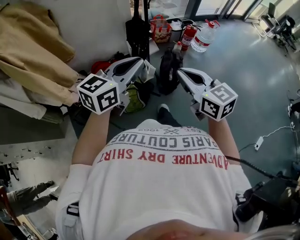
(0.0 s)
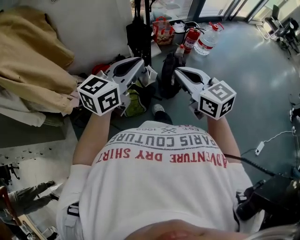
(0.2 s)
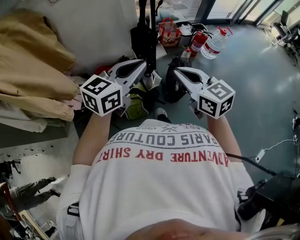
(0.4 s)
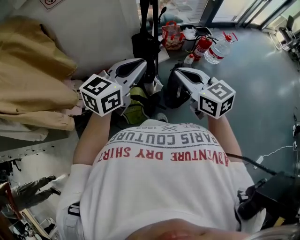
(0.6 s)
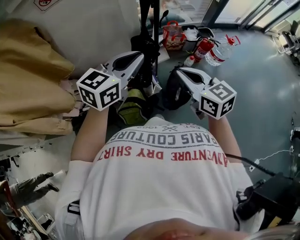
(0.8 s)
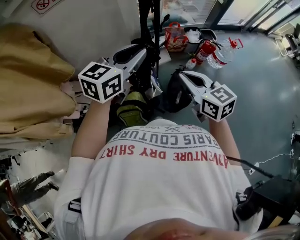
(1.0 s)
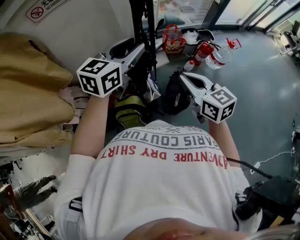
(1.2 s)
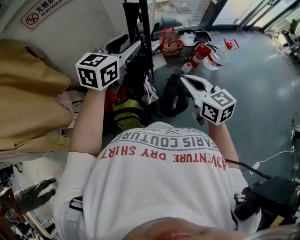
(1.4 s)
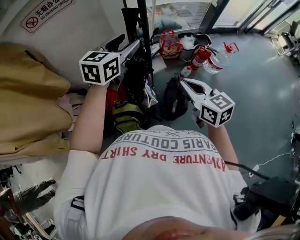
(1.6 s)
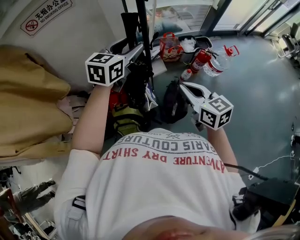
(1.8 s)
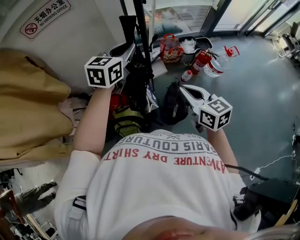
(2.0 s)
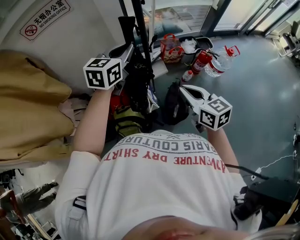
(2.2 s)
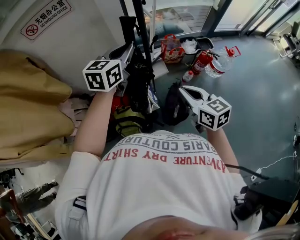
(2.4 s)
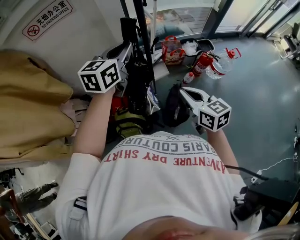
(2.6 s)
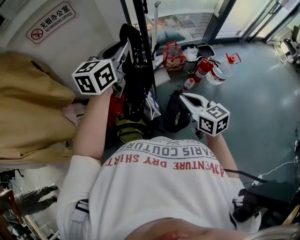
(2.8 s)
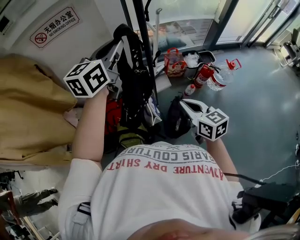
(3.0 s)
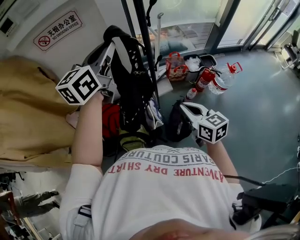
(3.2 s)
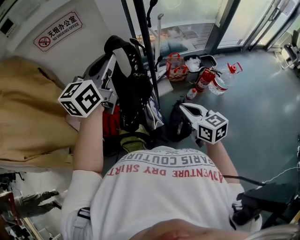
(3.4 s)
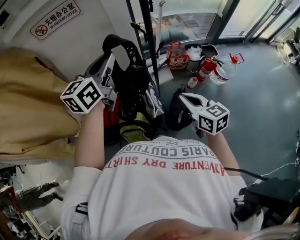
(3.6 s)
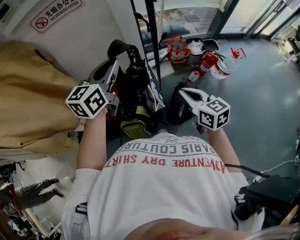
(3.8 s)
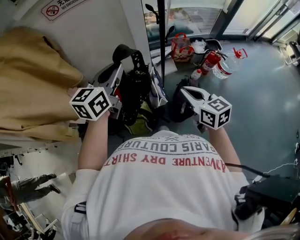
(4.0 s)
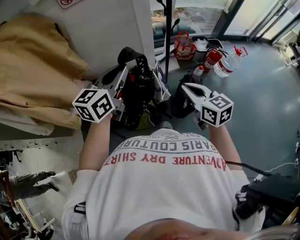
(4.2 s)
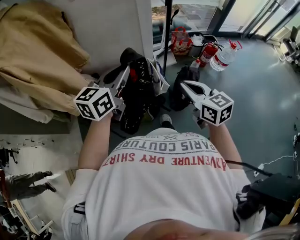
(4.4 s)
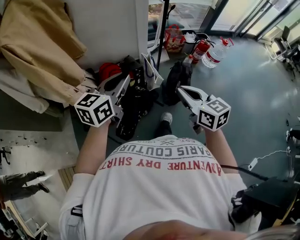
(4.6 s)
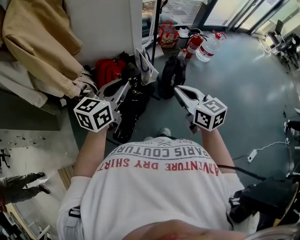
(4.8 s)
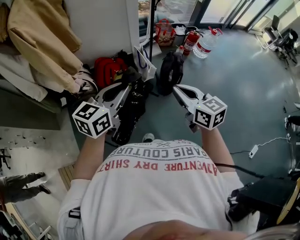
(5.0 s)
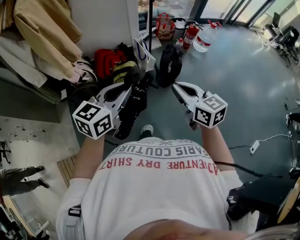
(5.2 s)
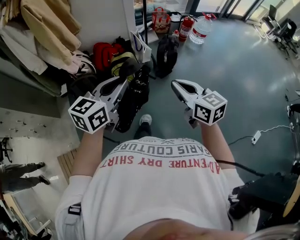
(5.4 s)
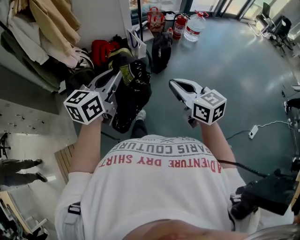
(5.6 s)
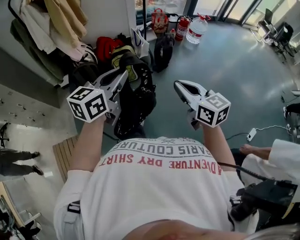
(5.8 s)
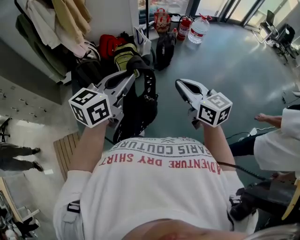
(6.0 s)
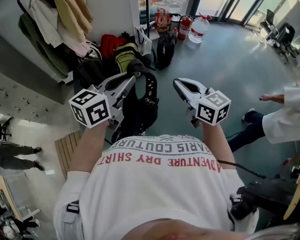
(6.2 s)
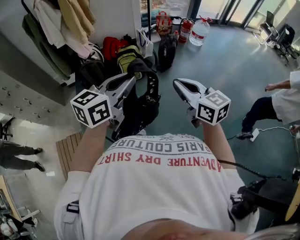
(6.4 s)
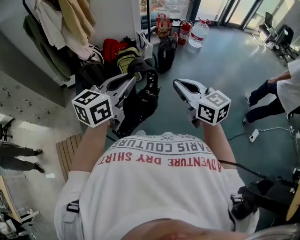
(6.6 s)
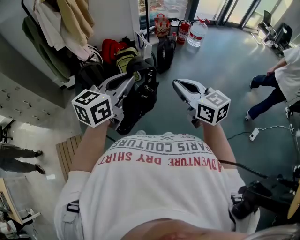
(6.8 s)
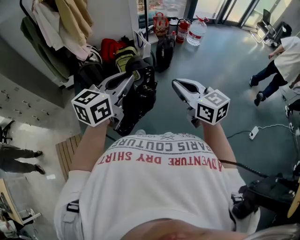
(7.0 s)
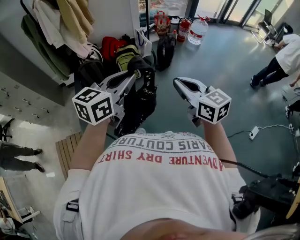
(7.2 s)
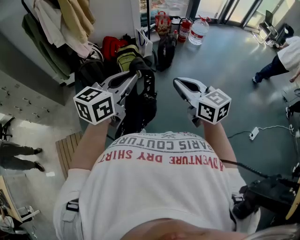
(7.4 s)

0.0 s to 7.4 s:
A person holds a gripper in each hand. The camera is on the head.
0.0 to 1.4 s: Both grippers move forward, some 40 cm. The left gripper opens.
1.4 to 3.0 s: The left gripper moves upward and forward, some 10 cm, and closes.
3.0 to 4.4 s: Both grippers move backward and to the left, about 30 cm.
4.4 to 6.0 s: The pair of grippers is taken backward, approximately 60 cm.
6.0 to 7.4 s: The two grippers go roughly 5 cm backward.

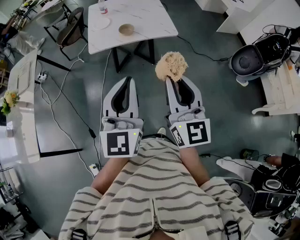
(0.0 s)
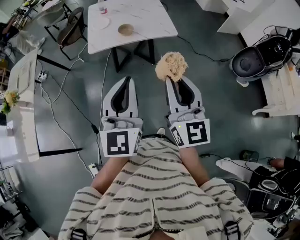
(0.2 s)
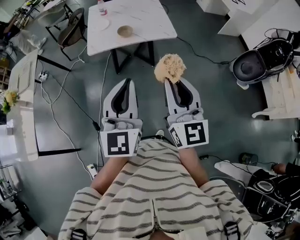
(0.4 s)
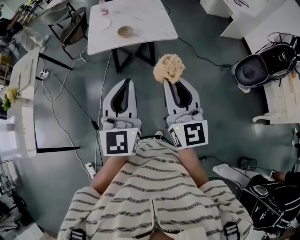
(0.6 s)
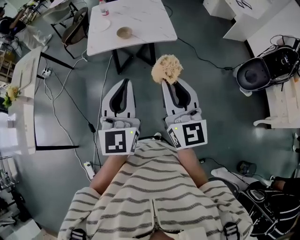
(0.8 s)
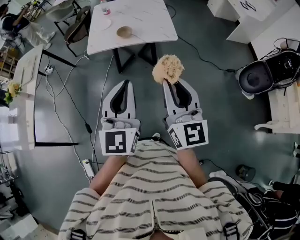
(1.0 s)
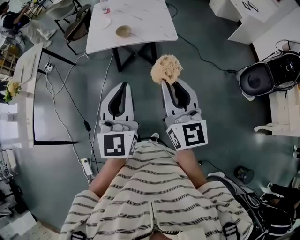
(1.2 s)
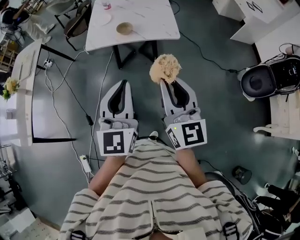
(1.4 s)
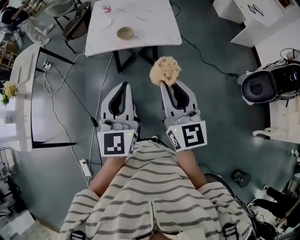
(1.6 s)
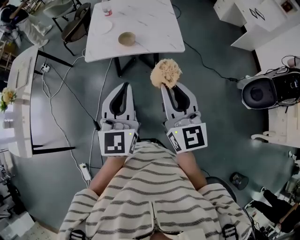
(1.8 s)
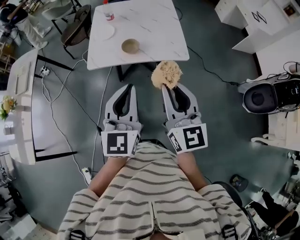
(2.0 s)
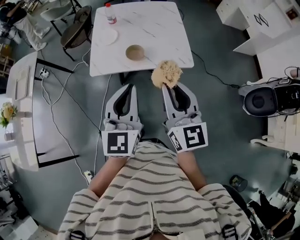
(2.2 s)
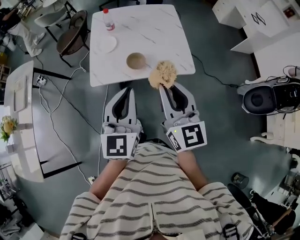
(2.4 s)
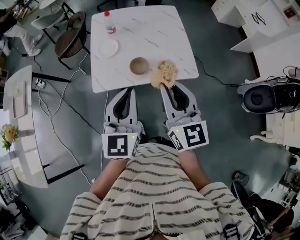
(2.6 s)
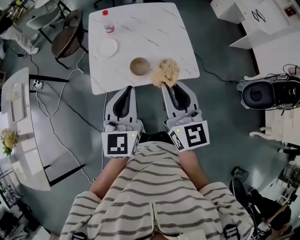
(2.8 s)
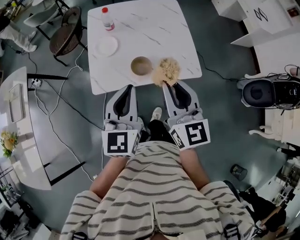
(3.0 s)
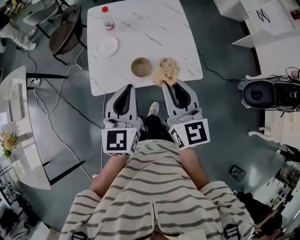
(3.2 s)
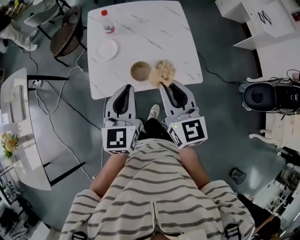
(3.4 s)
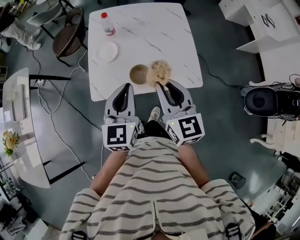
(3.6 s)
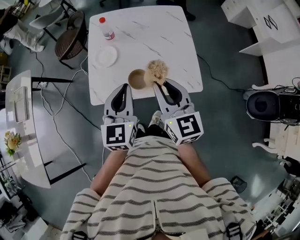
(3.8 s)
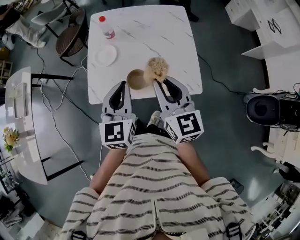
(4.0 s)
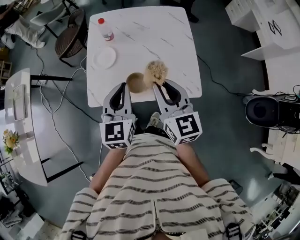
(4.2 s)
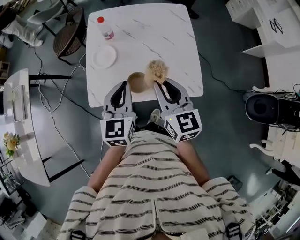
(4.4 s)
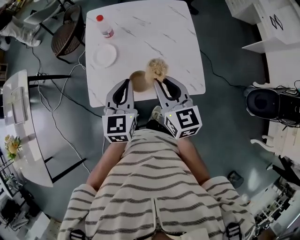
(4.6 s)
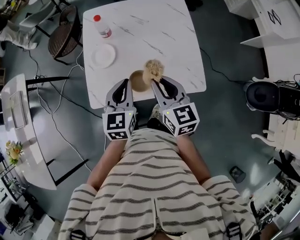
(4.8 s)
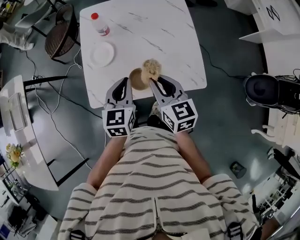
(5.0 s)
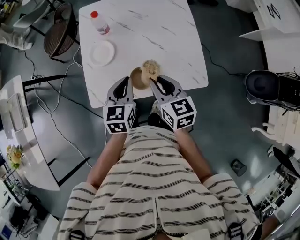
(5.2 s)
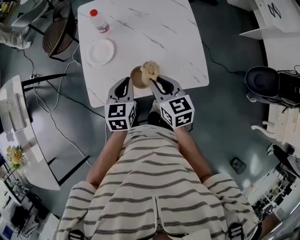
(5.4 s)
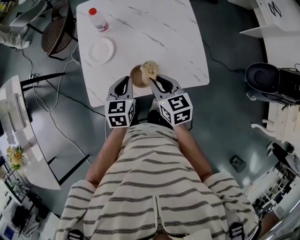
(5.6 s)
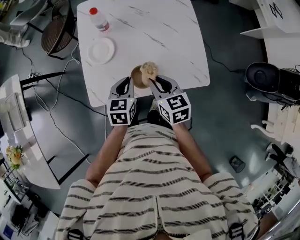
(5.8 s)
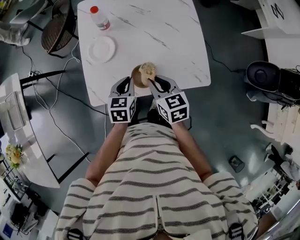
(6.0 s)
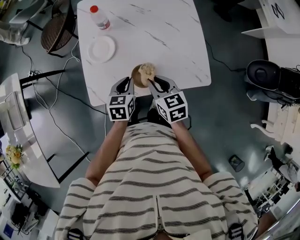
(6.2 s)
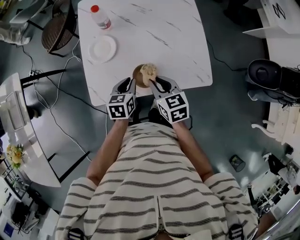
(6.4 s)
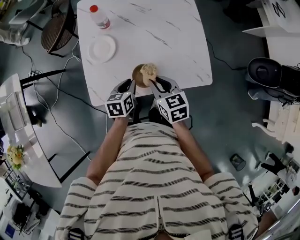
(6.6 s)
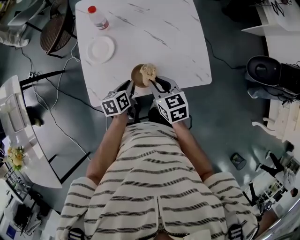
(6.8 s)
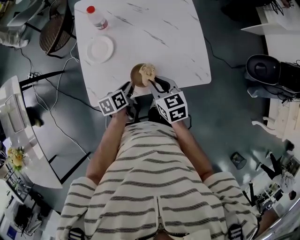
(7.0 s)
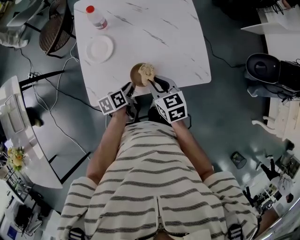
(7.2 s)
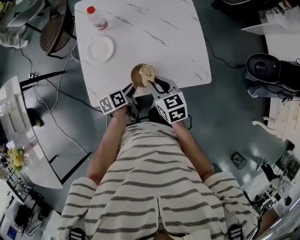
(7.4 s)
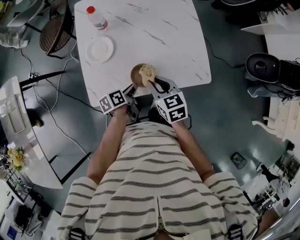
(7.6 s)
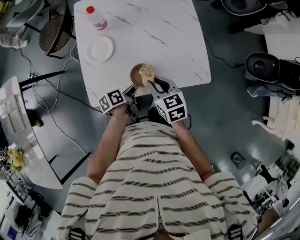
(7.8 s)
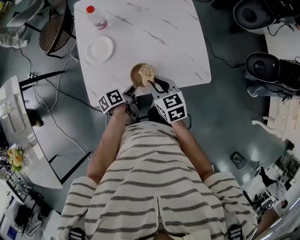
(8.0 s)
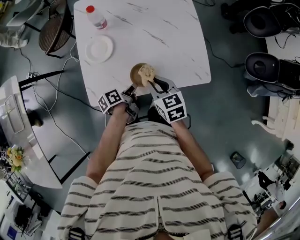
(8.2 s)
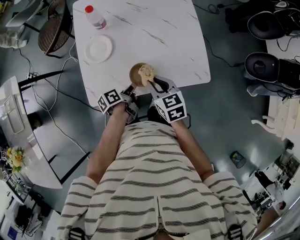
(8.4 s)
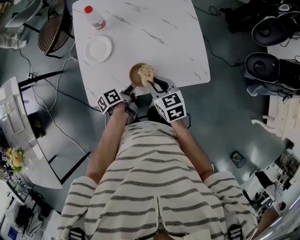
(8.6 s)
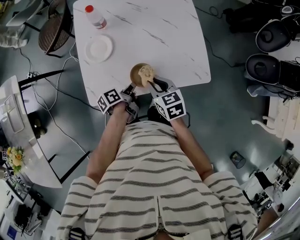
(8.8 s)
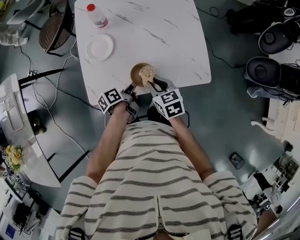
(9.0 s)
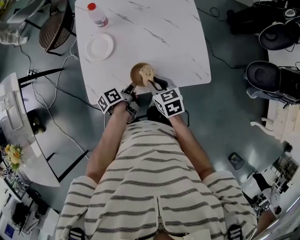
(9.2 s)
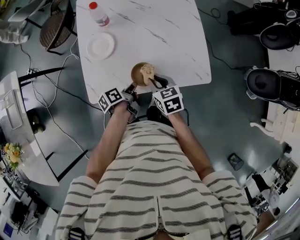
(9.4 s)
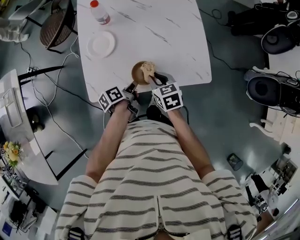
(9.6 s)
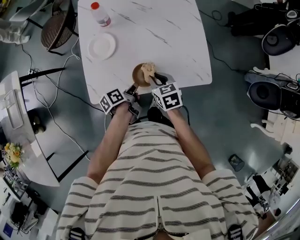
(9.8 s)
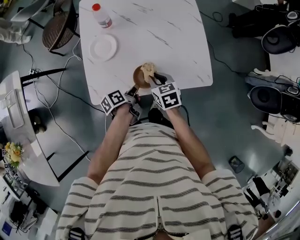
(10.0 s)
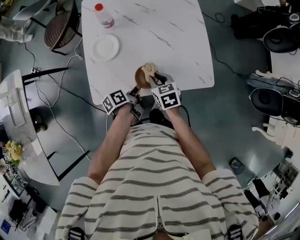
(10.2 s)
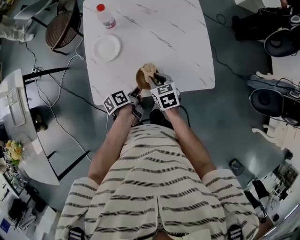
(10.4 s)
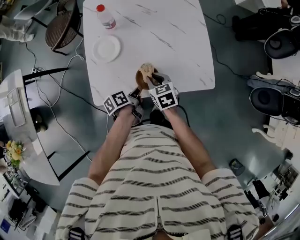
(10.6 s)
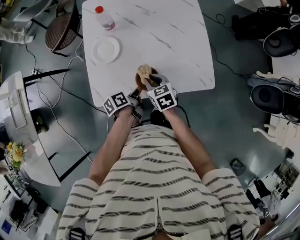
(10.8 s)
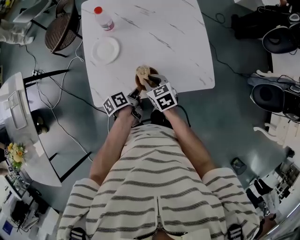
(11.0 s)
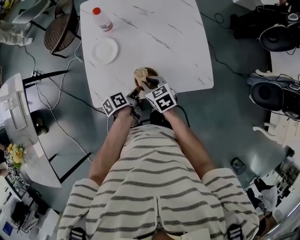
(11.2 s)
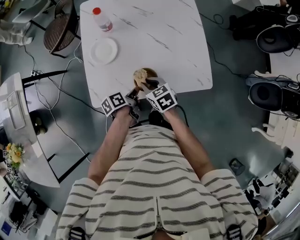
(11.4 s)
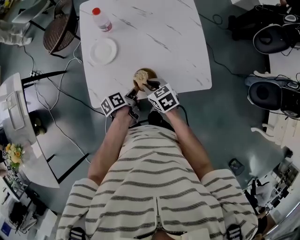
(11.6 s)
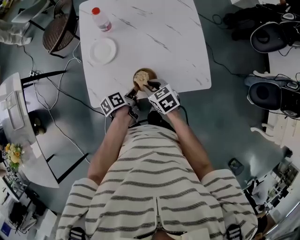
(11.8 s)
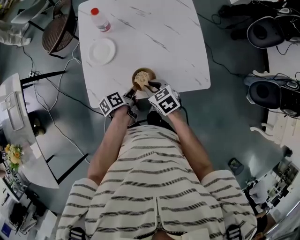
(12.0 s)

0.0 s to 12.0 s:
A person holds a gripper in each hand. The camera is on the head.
0.0 to 1.6 s: The left gripper shifts roughly 15 cm to the right, forward and downward. Meanwhile the right gripper moves forward and to the right, about 15 cm.
1.6 to 3.0 s: The two grippers go roughly 35 cm forward.
3.0 to 4.4 s: Both grippers move forward and downward, approximately 15 cm.
4.4 to 6.0 s: Both grippers move downward, approximately 15 cm. The left gripper swivels approximately 30 degrees. The right gripper swivels roughly 20 degrees.
6.0 to 7.6 s: The left gripper moves downward, roughly 10 cm, and rolls counterclockwise, seen from behind, by some 50 degrees.
7.6 to 9.0 s: The grippers make only small movements.
9.0 to 10.4 s: The right gripper moves about 5 cm.
10.4 to 12.0 s: There are only small adjustments of the grippers.

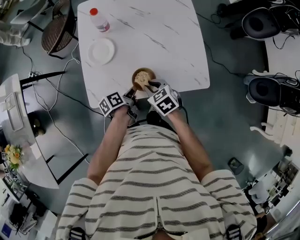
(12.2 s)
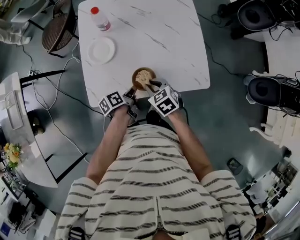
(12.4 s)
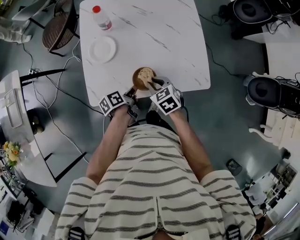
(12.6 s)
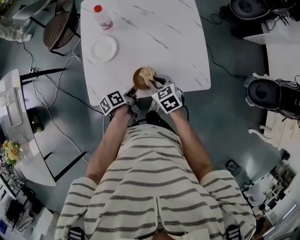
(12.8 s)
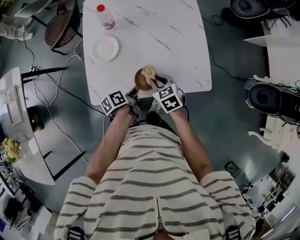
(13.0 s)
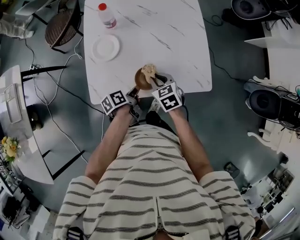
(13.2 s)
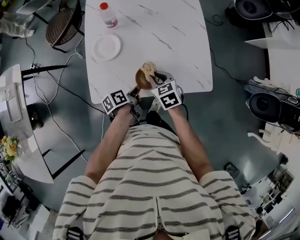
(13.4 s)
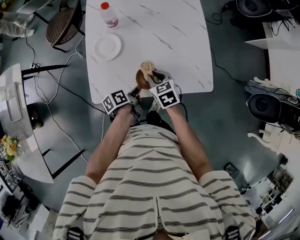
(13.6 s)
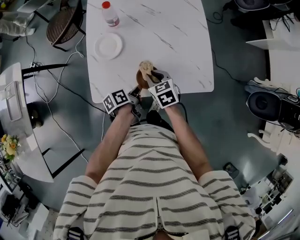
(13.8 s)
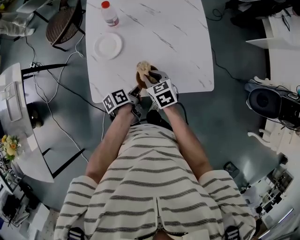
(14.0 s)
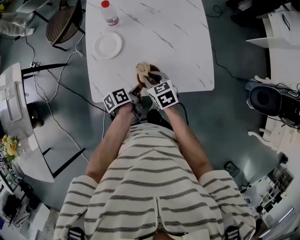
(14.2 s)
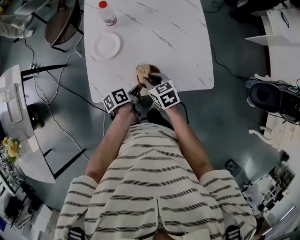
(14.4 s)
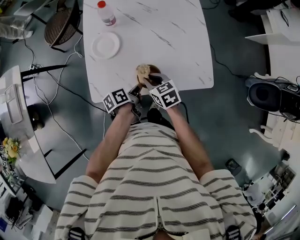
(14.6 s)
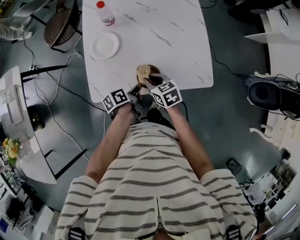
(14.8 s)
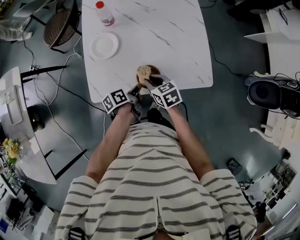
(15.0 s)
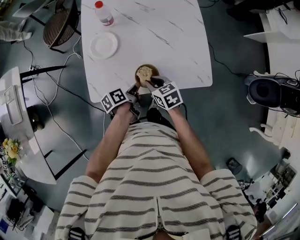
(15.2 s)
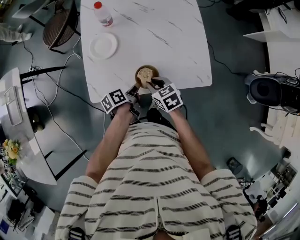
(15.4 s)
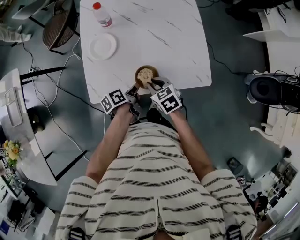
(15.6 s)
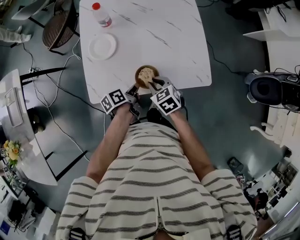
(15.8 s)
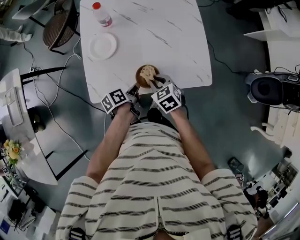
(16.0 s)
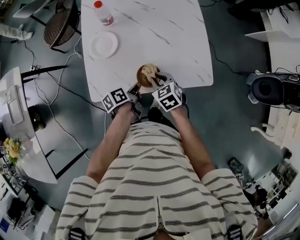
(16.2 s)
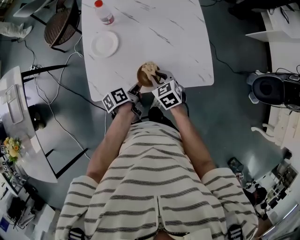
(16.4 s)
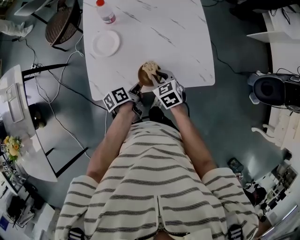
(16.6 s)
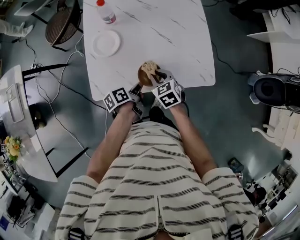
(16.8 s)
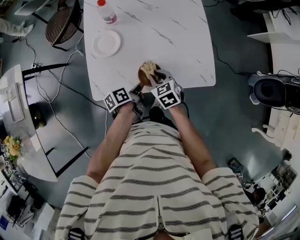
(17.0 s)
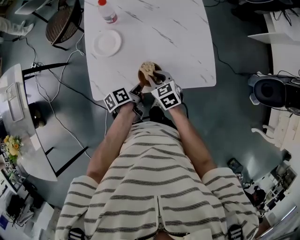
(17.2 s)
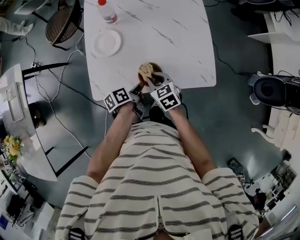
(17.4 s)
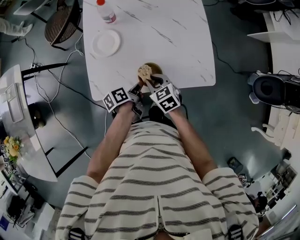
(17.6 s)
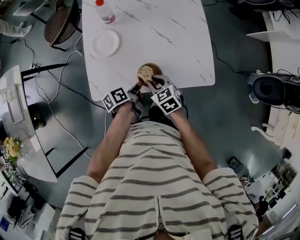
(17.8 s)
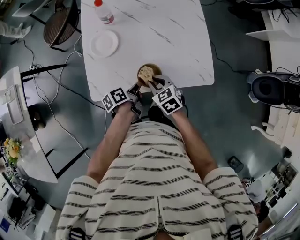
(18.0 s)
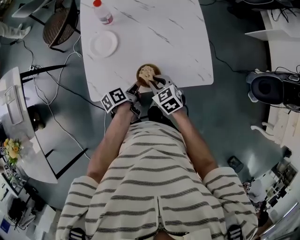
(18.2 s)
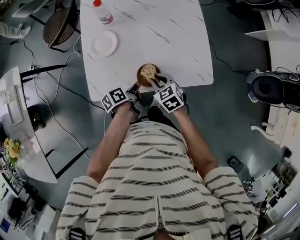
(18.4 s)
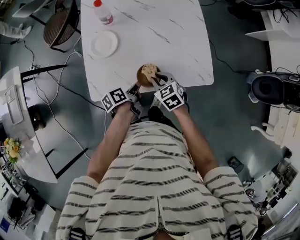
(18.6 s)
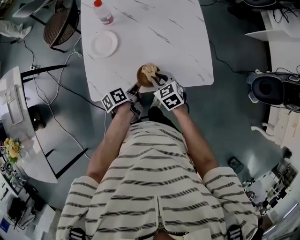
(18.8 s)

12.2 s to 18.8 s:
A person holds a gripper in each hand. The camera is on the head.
12.2 to 13.8 s: The right gripper shifts by roughly 5 cm.
13.8 to 15.4 s: The right gripper moves backward, approximately 5 cm.
15.4 to 18.8 s: The grippers make only small movements.
